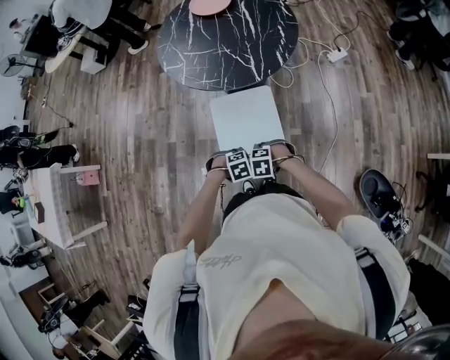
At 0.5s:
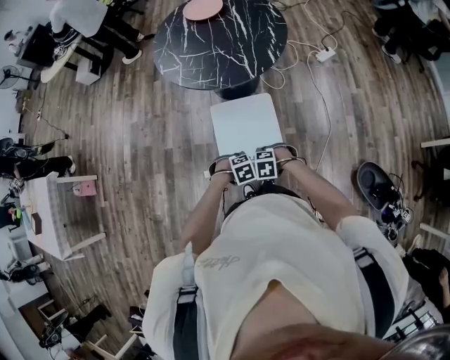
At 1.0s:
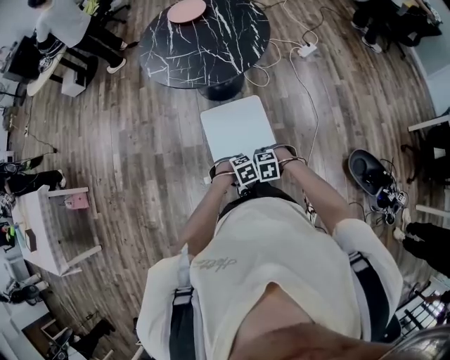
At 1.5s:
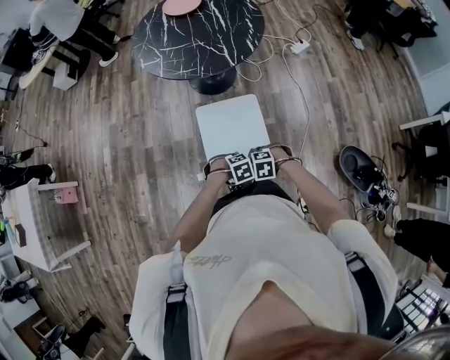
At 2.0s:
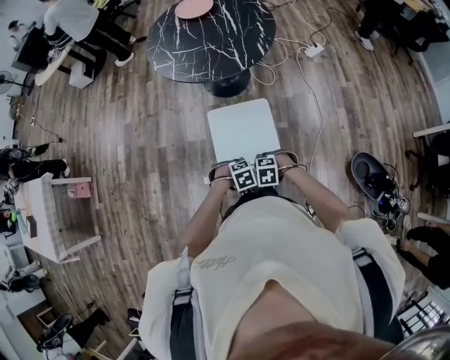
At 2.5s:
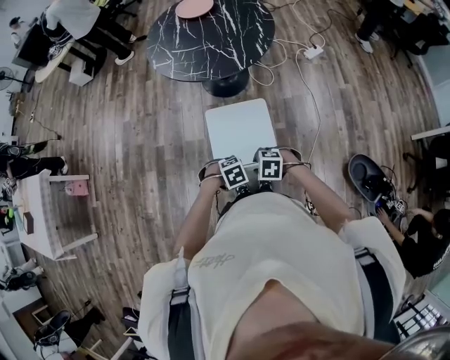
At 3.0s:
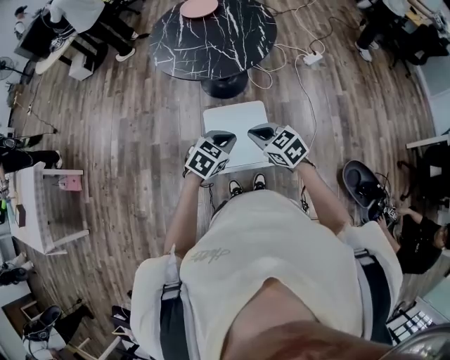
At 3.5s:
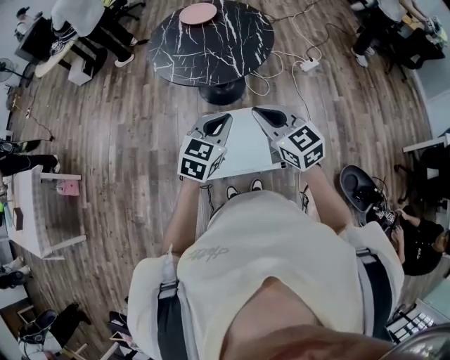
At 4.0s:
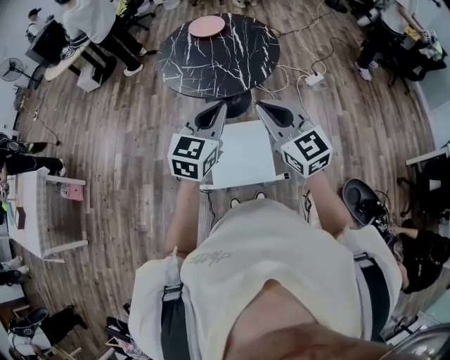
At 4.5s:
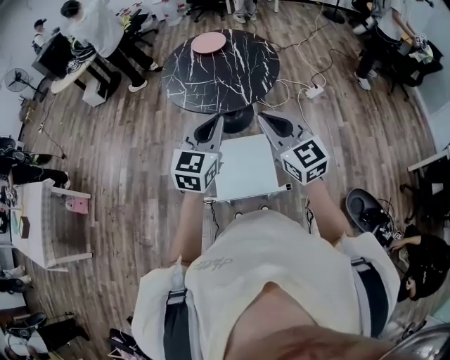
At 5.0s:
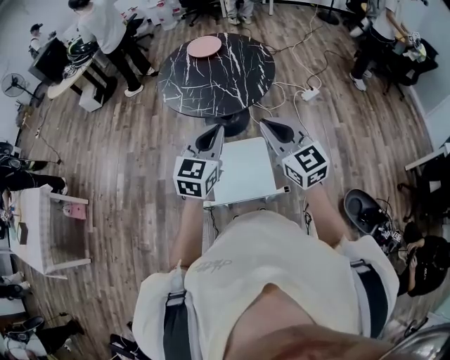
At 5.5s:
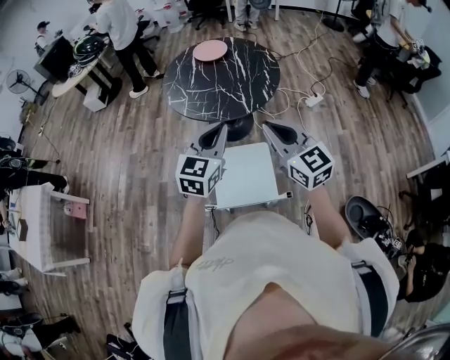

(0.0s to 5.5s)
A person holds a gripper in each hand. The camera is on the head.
0.0s - 2.0s: The right gripper ends up approximately 15 cm from where it was. The left gripper changes place by about 15 cm.
2.0s - 3.5s: The two grippers go roughly 35 cm upward. The right gripper points its fingers roughly 60 degrees further upward, and closes, while the left gripper tilts its fingers about 50 degrees upward.
3.5s - 5.5s: Both grippers move upward, some 10 cm.

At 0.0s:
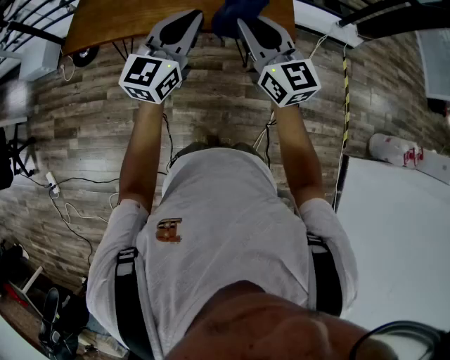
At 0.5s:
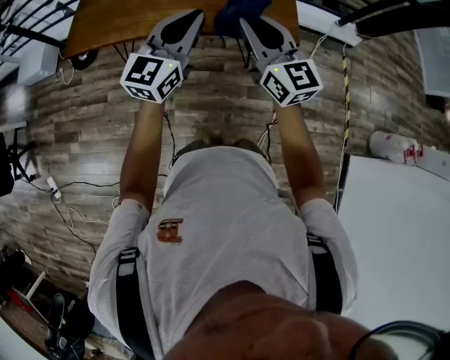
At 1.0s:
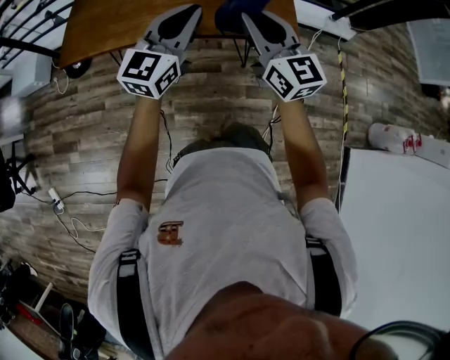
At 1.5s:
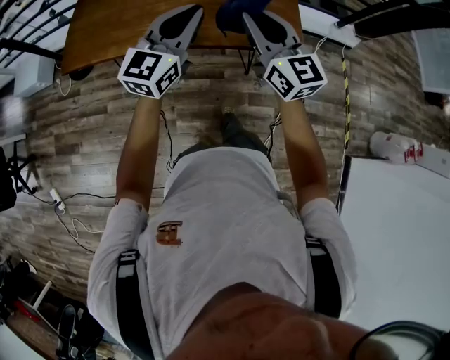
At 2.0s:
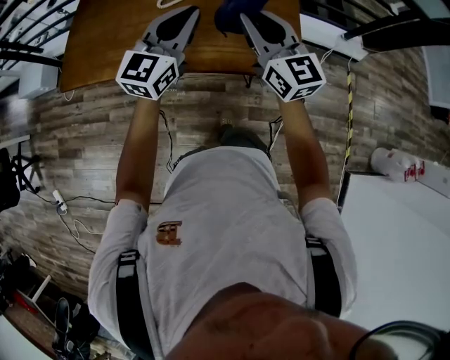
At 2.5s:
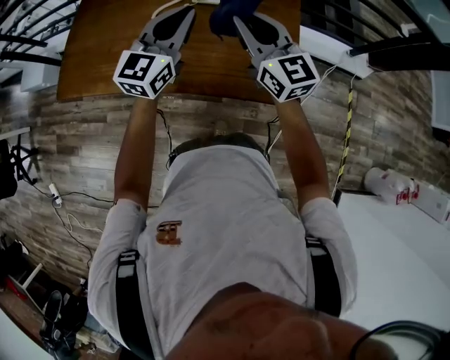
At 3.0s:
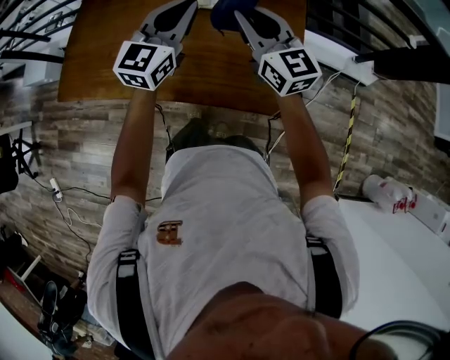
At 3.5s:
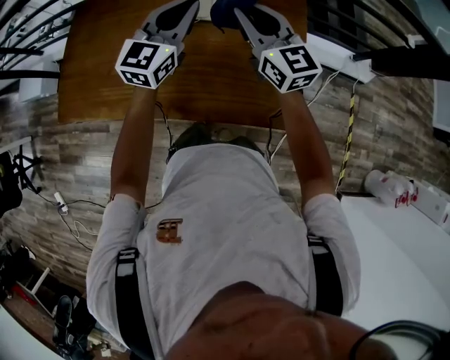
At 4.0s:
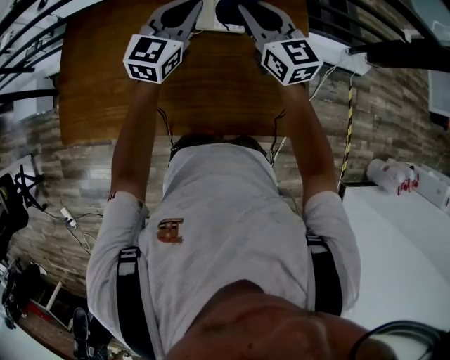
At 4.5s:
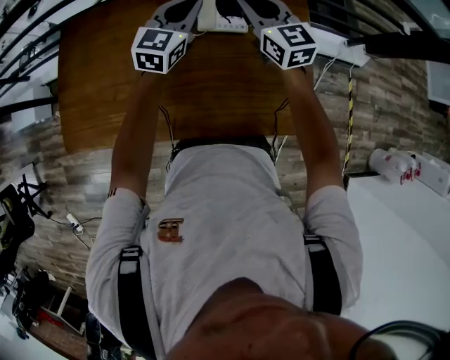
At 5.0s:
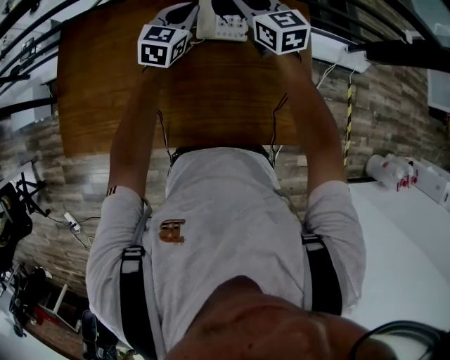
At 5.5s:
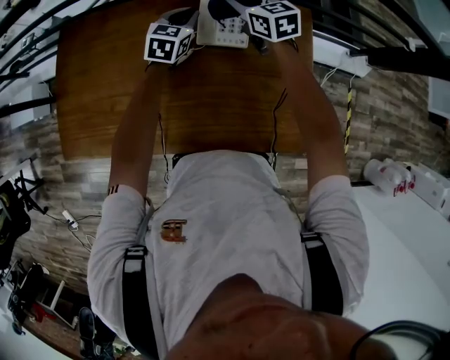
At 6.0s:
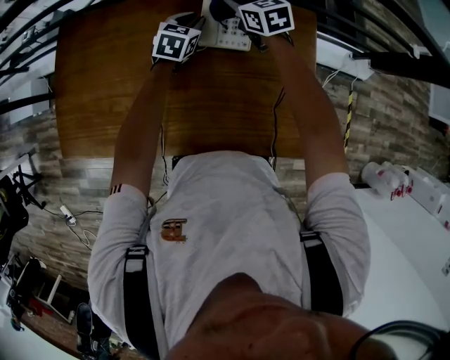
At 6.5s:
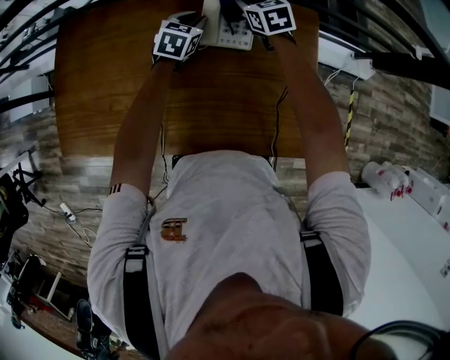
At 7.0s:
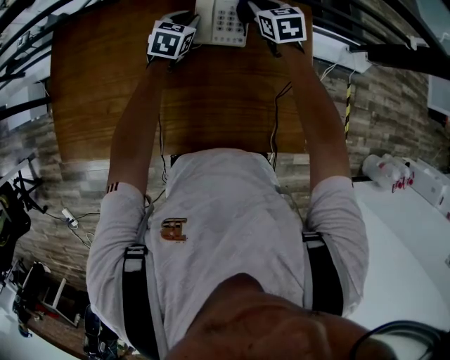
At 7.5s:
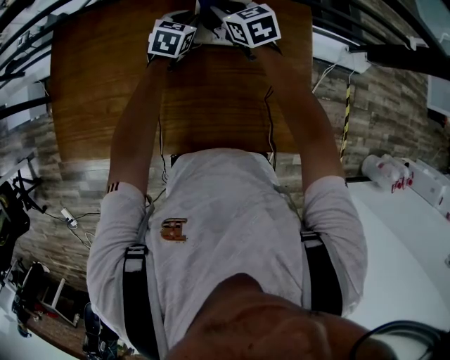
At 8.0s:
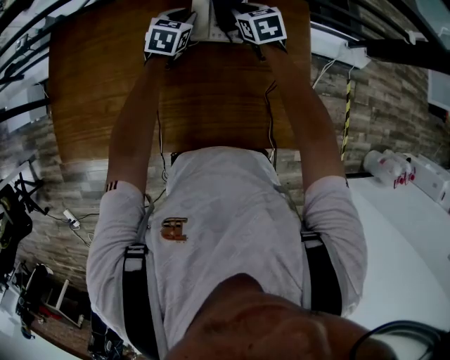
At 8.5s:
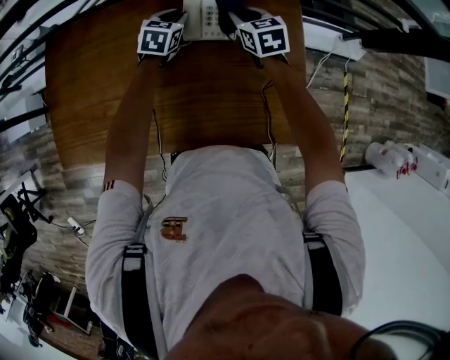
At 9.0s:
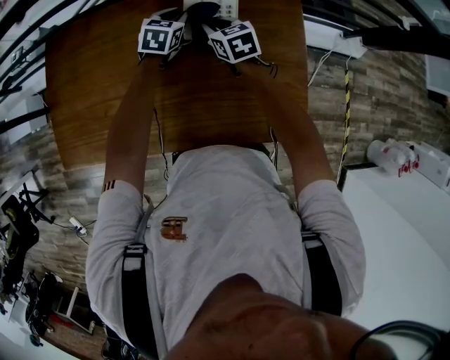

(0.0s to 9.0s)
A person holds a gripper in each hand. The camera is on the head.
0.0s - 2.0s: Both grippers move forward, about 25 cm.
2.0s - 4.5s: The pair of grippers is taken forward, some 40 cm.
4.5s - 7.0s: The right gripper travels downward, forward and to the right by approximately 20 cm, and turns by some 30 degrees; the left gripper goes approximately 20 cm downward and forward, and rotates roughly 30 degrees.
7.0s - 9.0s: The right gripper swings left and right, some 10 cm each way, with 2 reversals.

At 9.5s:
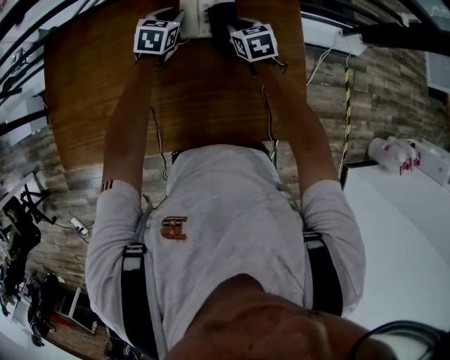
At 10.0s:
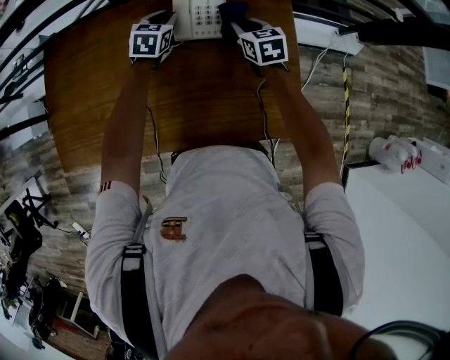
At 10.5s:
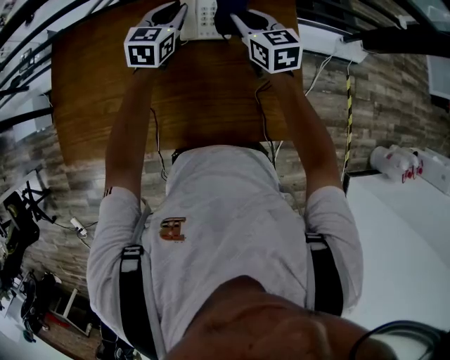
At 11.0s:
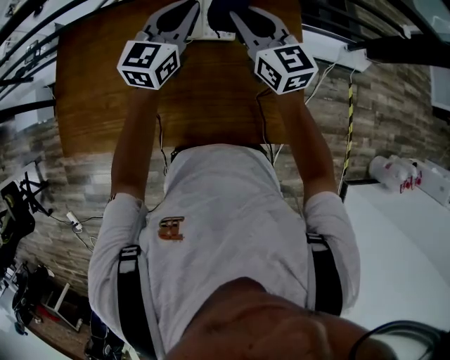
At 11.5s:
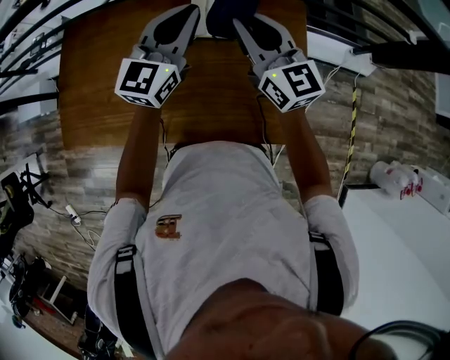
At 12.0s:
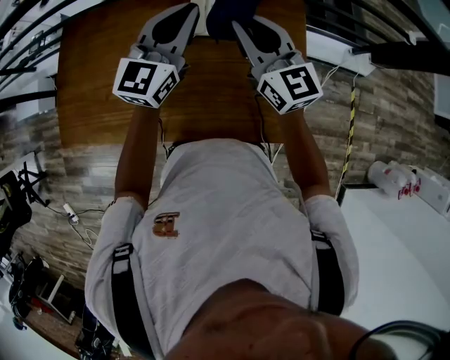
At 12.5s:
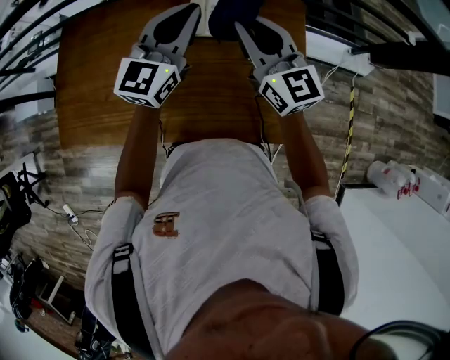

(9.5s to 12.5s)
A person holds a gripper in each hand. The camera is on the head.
9.5s - 11.0s: The left gripper goes about 25 cm upward and backward, and angles its fingers upward, by about 30 degrees. The right gripper travels upward by roughly 25 cm, and points its fingers approximately 40 degrees further upward.
11.0s - 12.5s: The left gripper shifts by some 5 cm, while the right gripper changes place by approximately 5 cm.

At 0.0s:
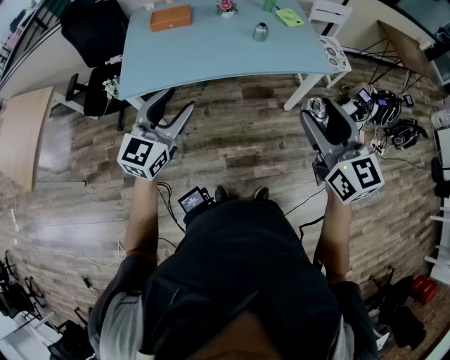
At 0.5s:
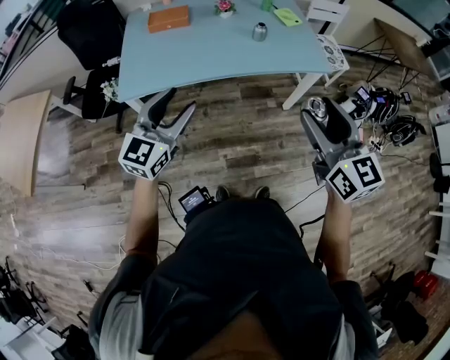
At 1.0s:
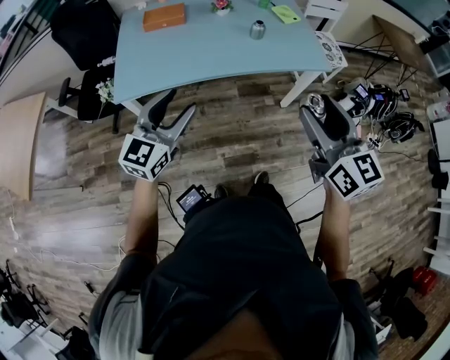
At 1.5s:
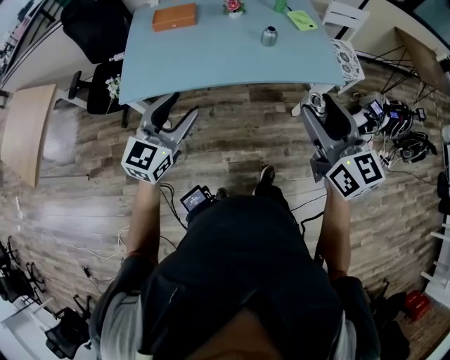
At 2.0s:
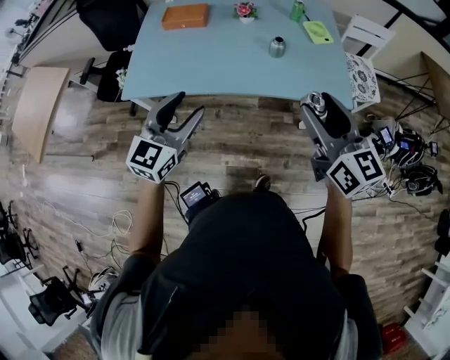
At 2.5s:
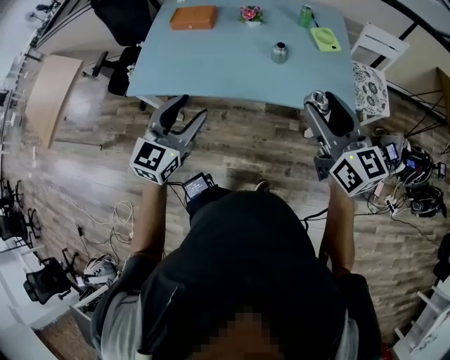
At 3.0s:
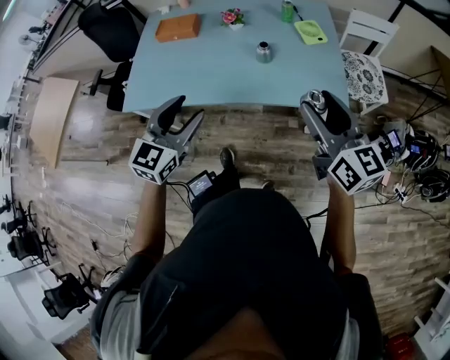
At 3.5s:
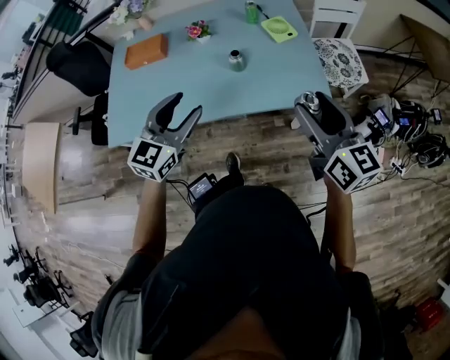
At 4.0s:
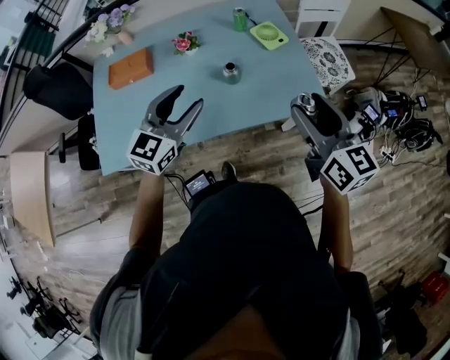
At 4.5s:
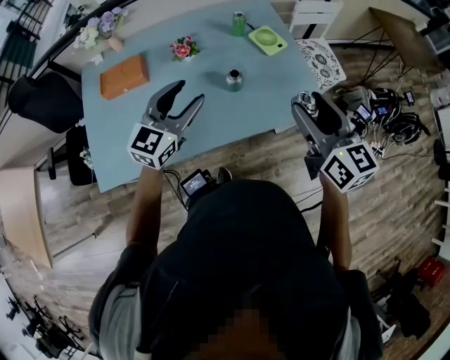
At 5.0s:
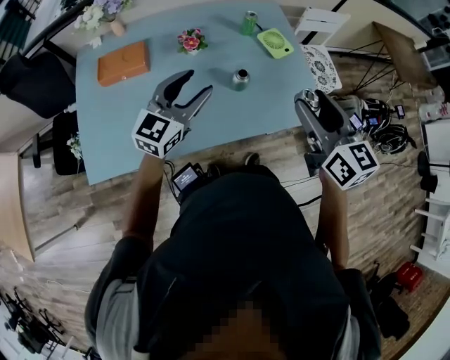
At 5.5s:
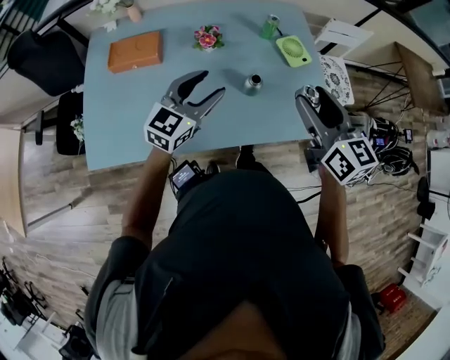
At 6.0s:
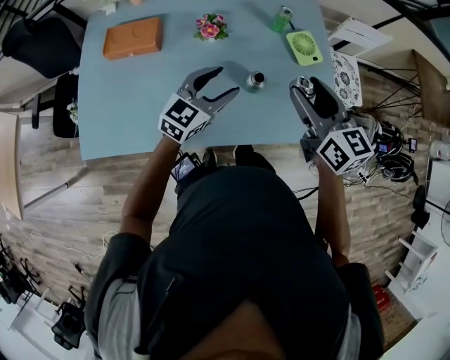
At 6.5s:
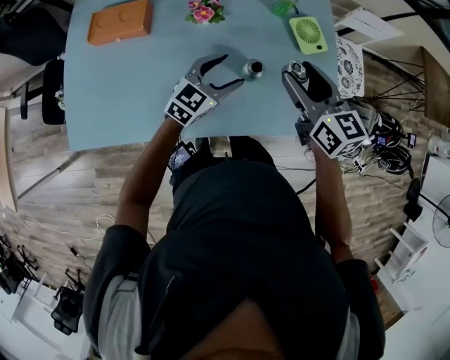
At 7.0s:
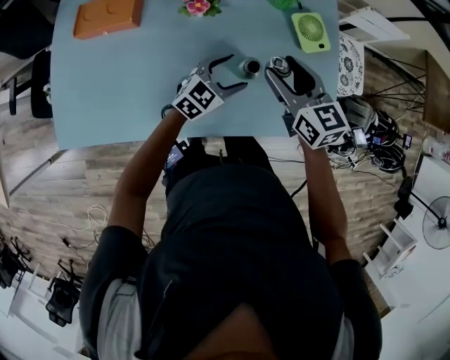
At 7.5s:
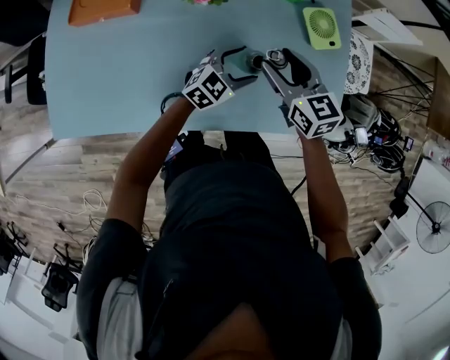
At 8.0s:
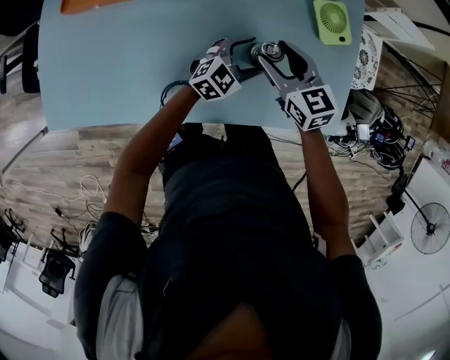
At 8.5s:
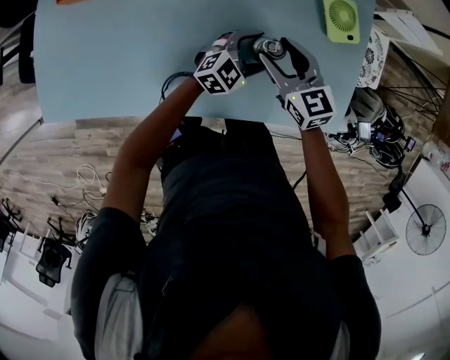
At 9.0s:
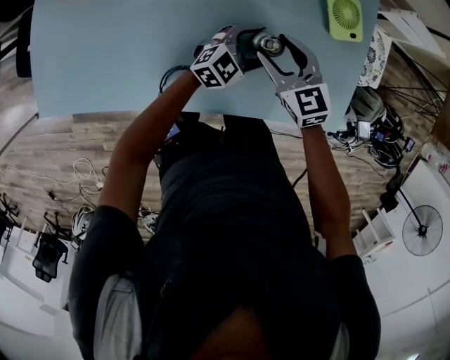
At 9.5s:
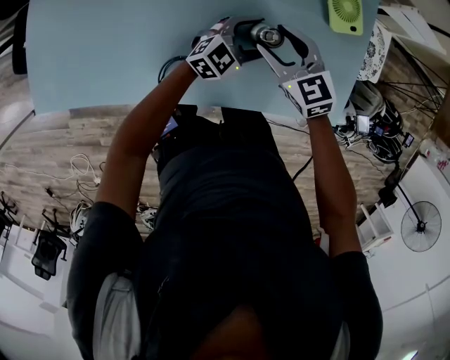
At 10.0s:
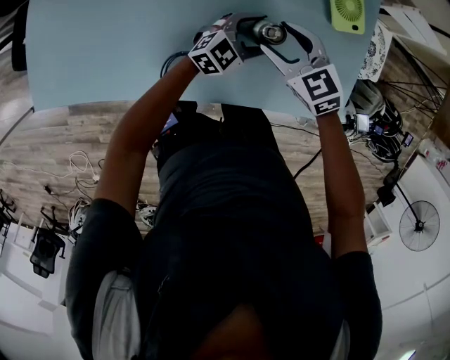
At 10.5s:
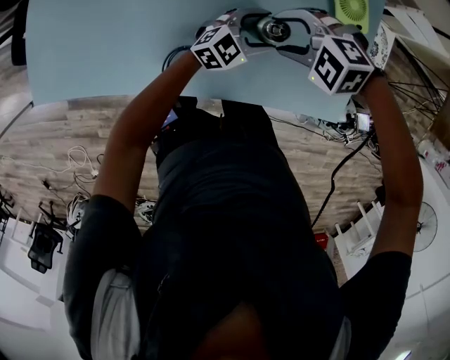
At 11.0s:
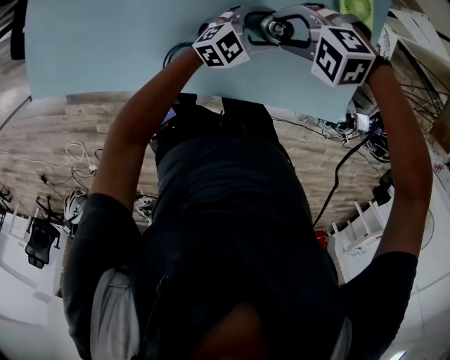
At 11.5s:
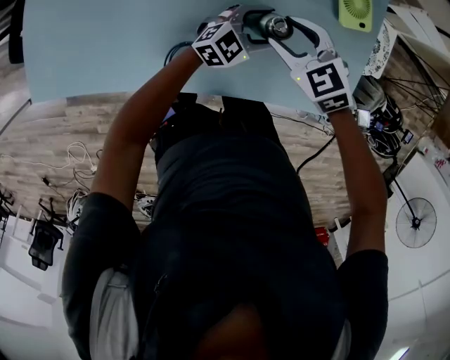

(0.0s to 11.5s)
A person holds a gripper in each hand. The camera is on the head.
0.0s - 2.0s: The left gripper shifts about 15 cm forward and to the right. The right gripper is displaced forward by about 20 cm.
2.0s - 4.0s: The right gripper moves forward and to the right, approximately 15 cm, while the left gripper is displaced forward and to the right by approximately 25 cm.
4.0s - 6.0s: The right gripper heads forward and to the left, covering roughly 25 cm, while the left gripper shifts about 20 cm forward and downward.
6.0s - 7.5s: The right gripper is displaced downward and forward by about 20 cm, while the left gripper moves downward and to the right, approximately 20 cm.
7.5s - 9.5s: The left gripper shifts by about 5 cm; the right gripper travels downward by about 10 cm, and swivels about 20 degrees.
